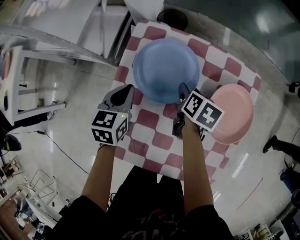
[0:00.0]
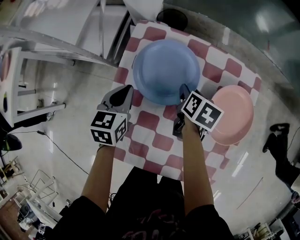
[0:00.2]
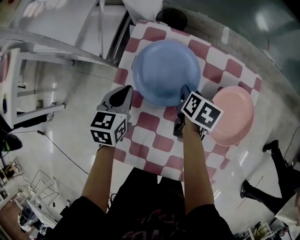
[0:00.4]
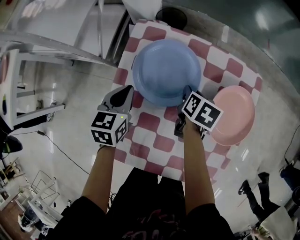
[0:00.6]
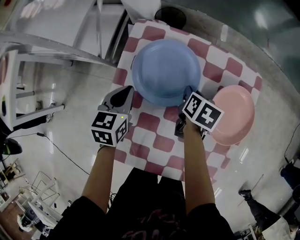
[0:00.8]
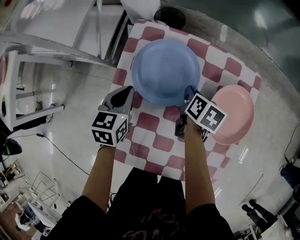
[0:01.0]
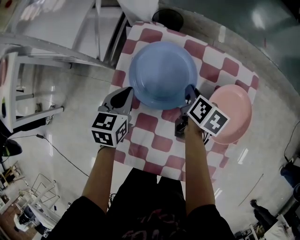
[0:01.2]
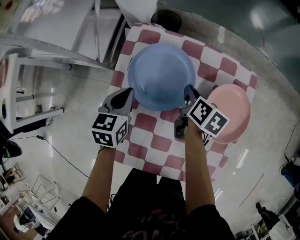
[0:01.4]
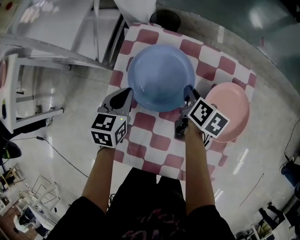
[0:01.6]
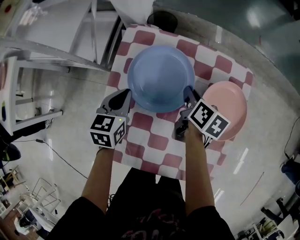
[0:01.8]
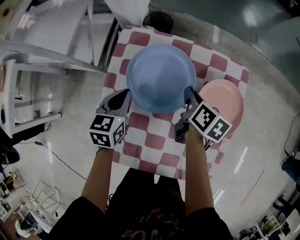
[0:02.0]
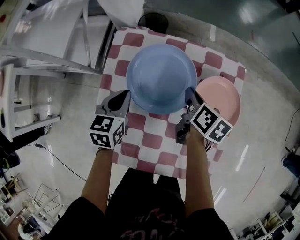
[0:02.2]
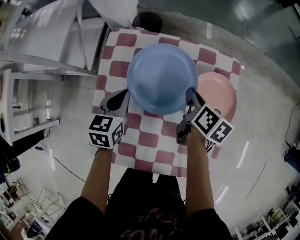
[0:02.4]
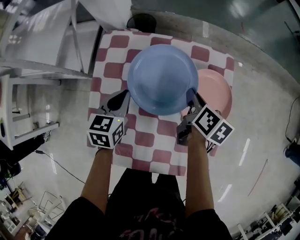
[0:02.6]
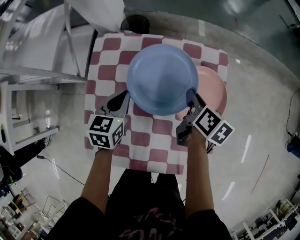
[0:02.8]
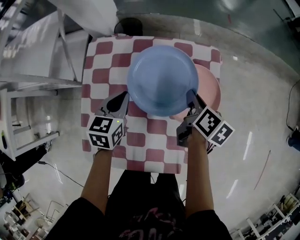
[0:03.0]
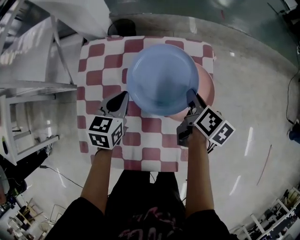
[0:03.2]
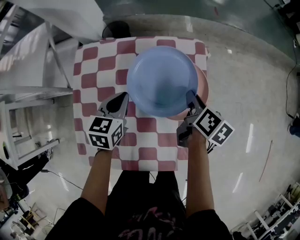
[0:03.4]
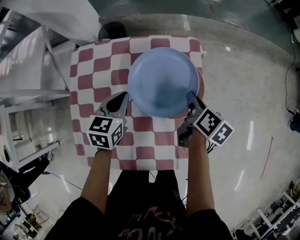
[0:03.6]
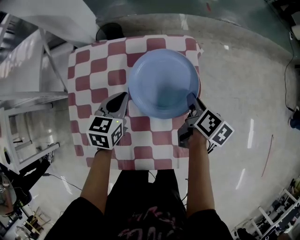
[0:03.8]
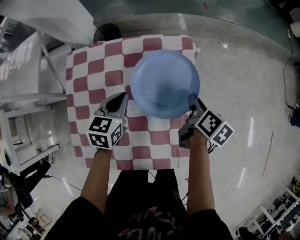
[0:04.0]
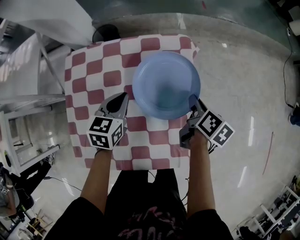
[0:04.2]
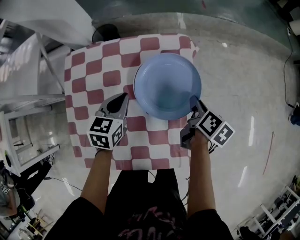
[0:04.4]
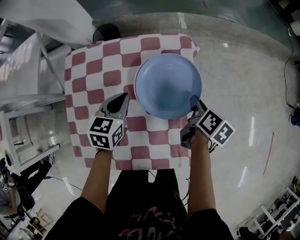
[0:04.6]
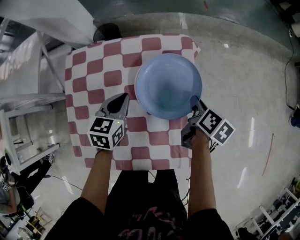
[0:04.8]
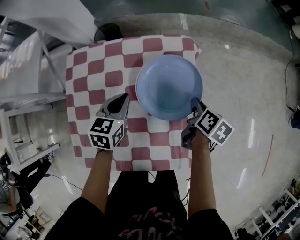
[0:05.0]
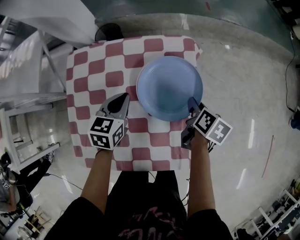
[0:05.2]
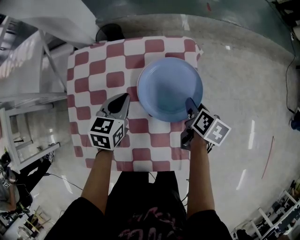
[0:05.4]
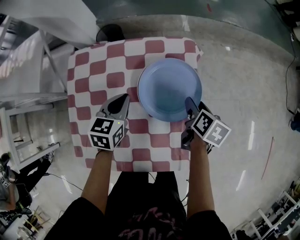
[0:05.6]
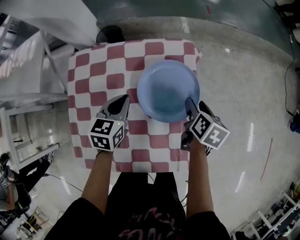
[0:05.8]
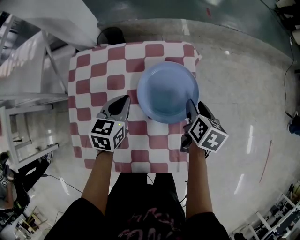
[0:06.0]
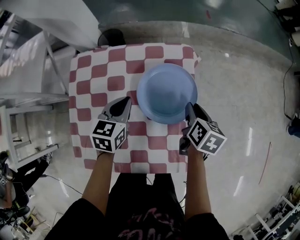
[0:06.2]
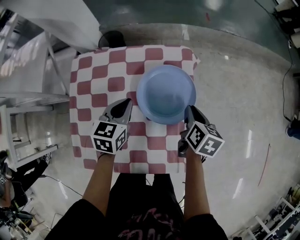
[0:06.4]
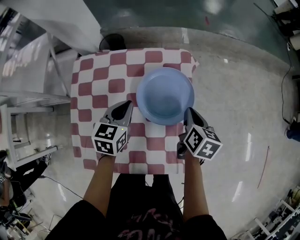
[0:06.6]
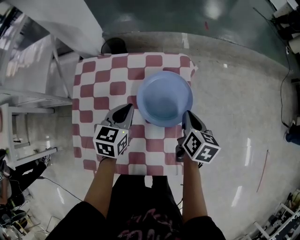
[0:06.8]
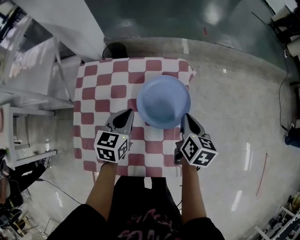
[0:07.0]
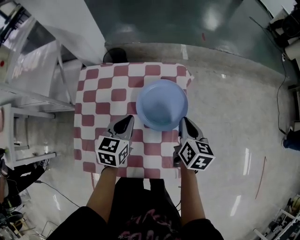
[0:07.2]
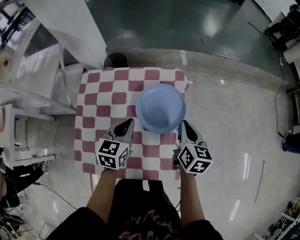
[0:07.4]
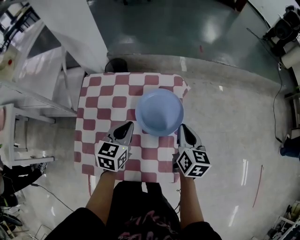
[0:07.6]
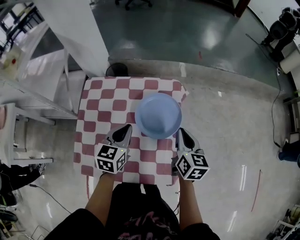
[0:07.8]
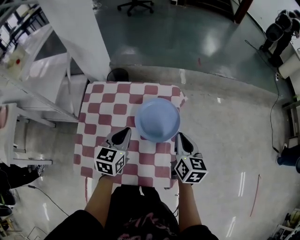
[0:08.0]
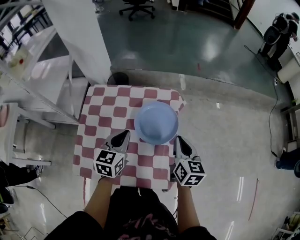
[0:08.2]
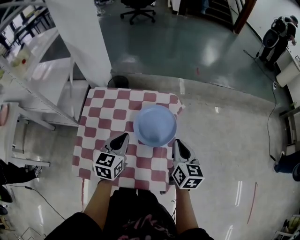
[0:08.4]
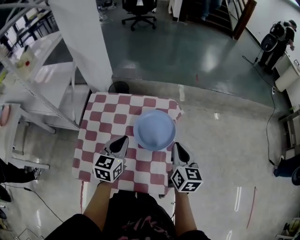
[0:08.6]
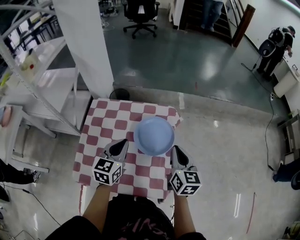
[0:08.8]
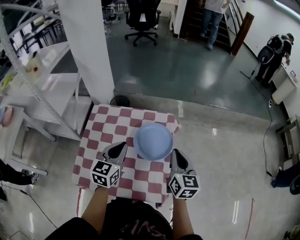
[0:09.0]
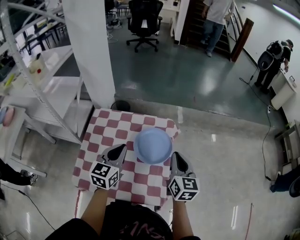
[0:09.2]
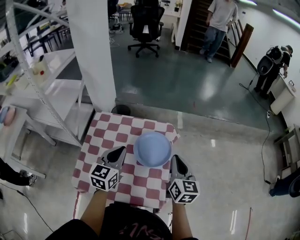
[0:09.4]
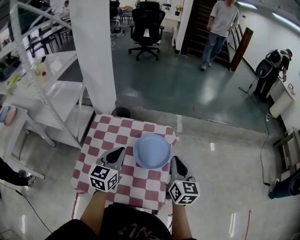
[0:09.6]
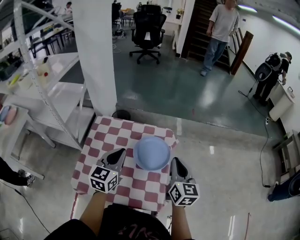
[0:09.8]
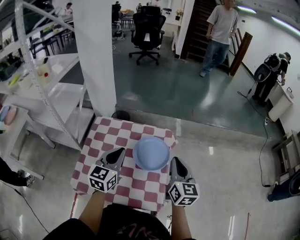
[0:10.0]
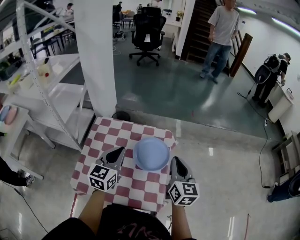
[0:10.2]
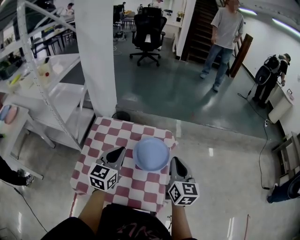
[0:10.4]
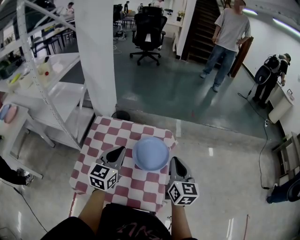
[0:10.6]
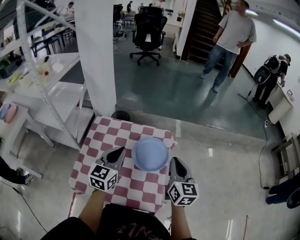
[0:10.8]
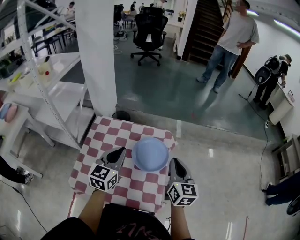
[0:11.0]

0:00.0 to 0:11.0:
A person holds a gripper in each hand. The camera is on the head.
0:00.0 to 0:01.6: The right gripper closes up.
0:01.6 to 0:03.2: Both grippers move to the right, approximately 20 cm.
0:03.2 to 0:04.8: The grippers both shift to the right by approximately 10 cm.
0:04.8 to 0:06.2: The right gripper opens and closes again.
0:06.2 to 0:07.8: The two grippers go roughly 10 cm upward and backward. The right gripper rotates about 30 degrees, and closes its fingers.
0:07.8 to 0:09.4: Both grippers move upward, approximately 10 cm.
0:09.4 to 0:11.0: The grippers stay close to where they were, moving slightly.

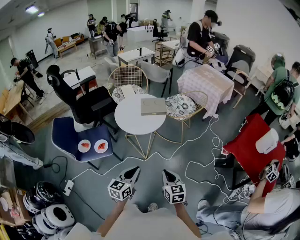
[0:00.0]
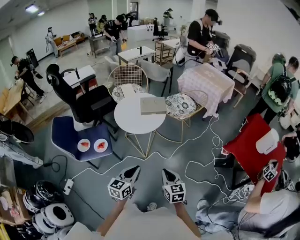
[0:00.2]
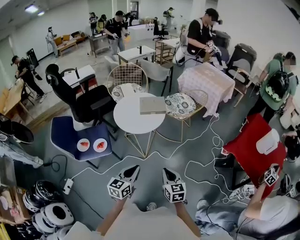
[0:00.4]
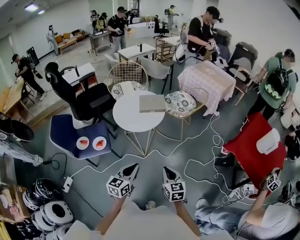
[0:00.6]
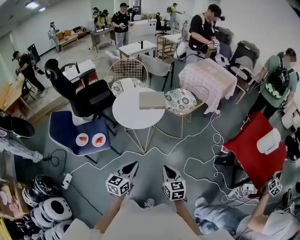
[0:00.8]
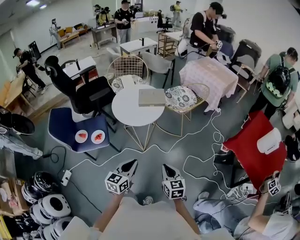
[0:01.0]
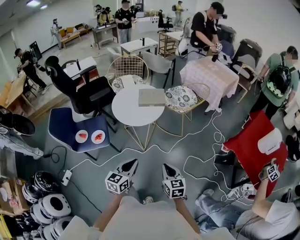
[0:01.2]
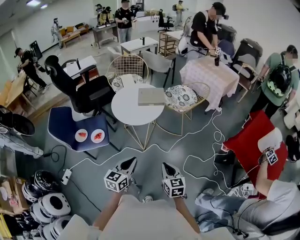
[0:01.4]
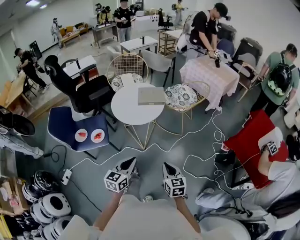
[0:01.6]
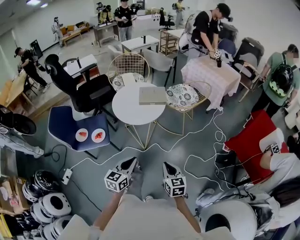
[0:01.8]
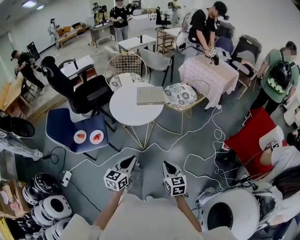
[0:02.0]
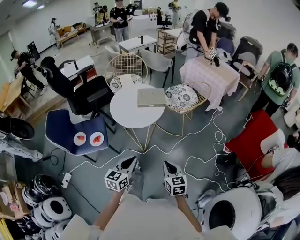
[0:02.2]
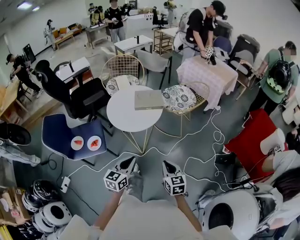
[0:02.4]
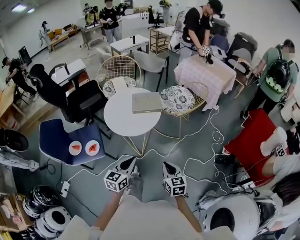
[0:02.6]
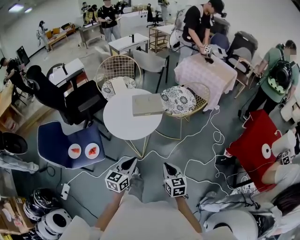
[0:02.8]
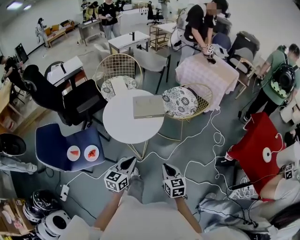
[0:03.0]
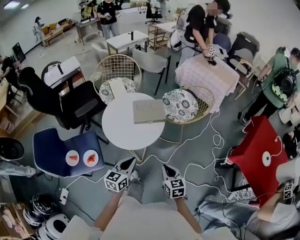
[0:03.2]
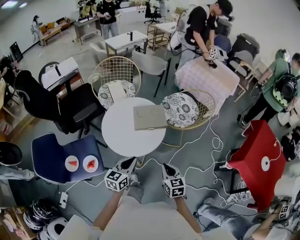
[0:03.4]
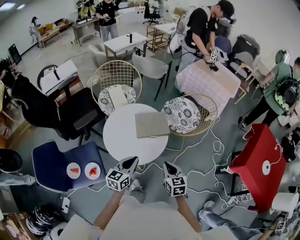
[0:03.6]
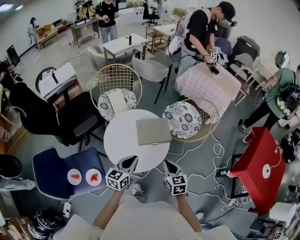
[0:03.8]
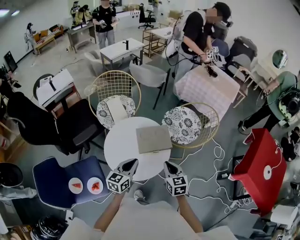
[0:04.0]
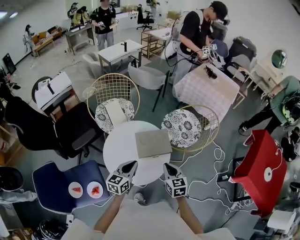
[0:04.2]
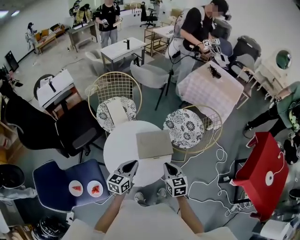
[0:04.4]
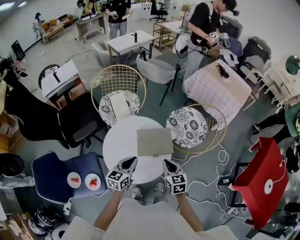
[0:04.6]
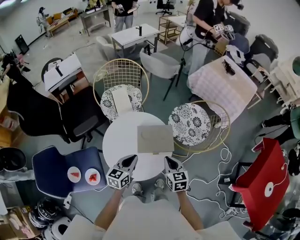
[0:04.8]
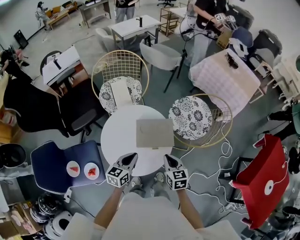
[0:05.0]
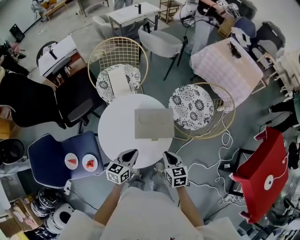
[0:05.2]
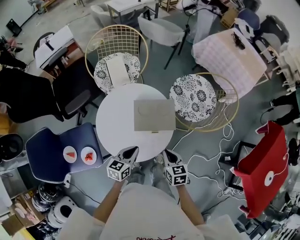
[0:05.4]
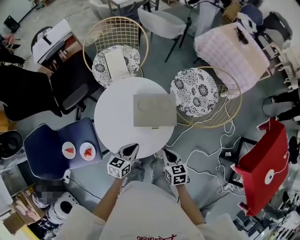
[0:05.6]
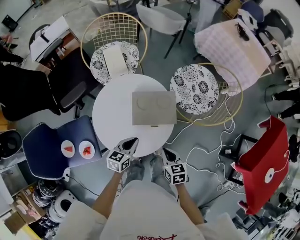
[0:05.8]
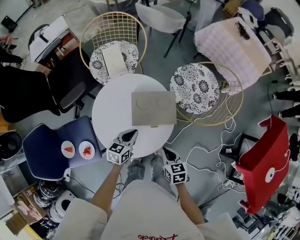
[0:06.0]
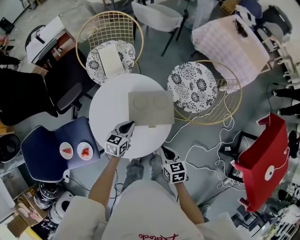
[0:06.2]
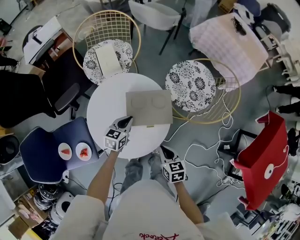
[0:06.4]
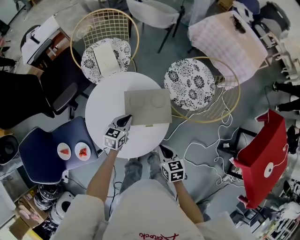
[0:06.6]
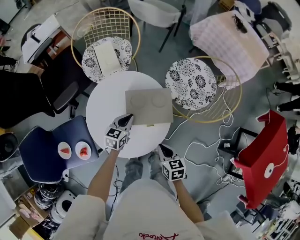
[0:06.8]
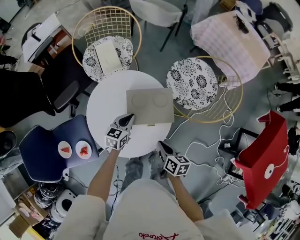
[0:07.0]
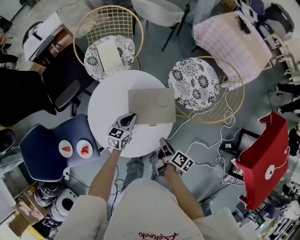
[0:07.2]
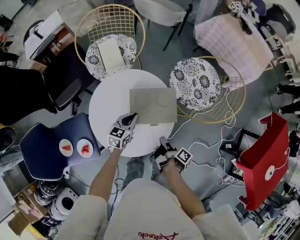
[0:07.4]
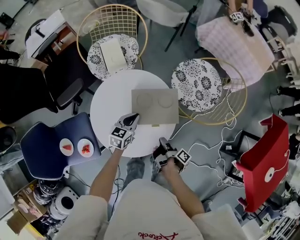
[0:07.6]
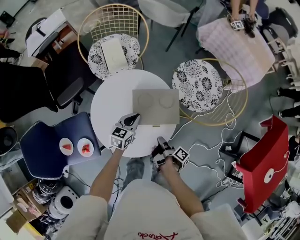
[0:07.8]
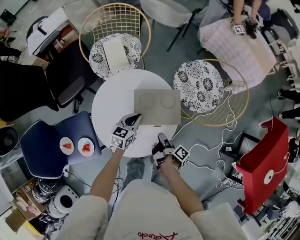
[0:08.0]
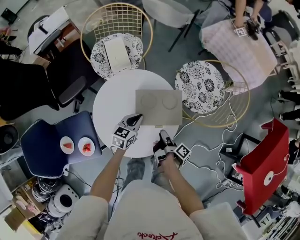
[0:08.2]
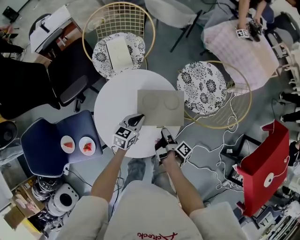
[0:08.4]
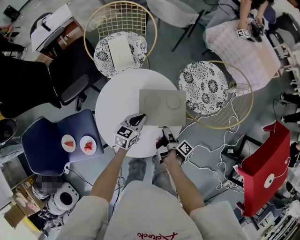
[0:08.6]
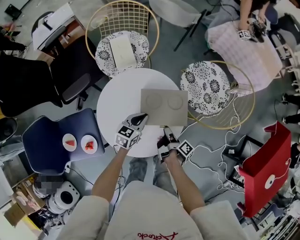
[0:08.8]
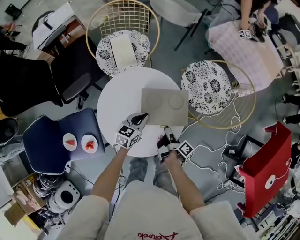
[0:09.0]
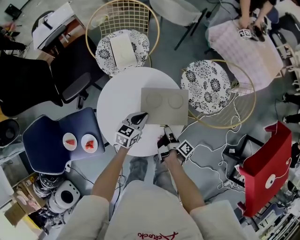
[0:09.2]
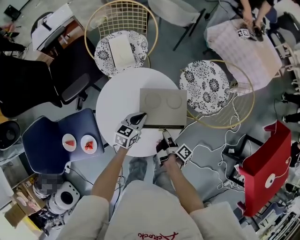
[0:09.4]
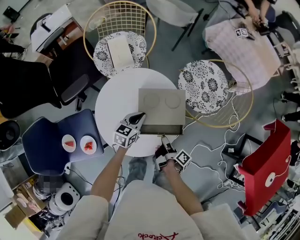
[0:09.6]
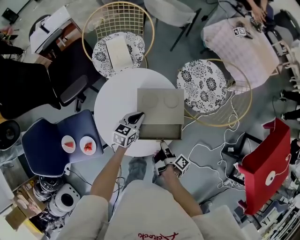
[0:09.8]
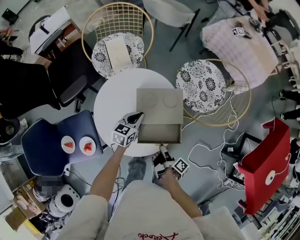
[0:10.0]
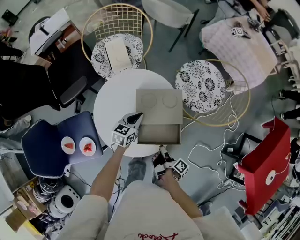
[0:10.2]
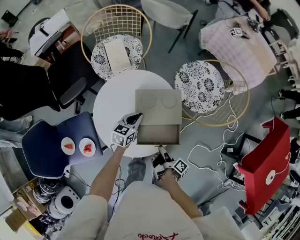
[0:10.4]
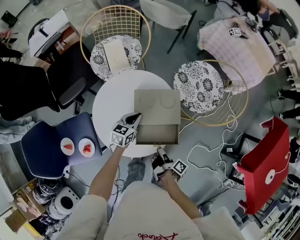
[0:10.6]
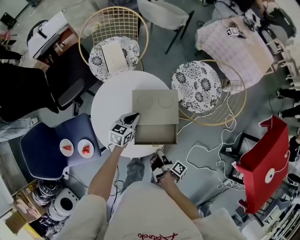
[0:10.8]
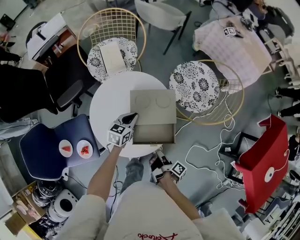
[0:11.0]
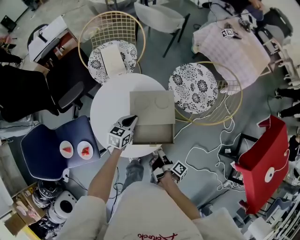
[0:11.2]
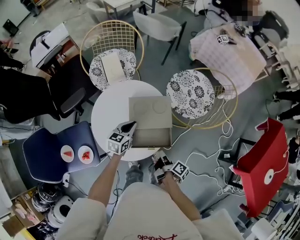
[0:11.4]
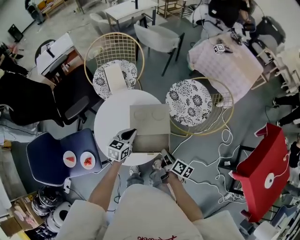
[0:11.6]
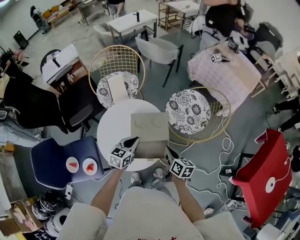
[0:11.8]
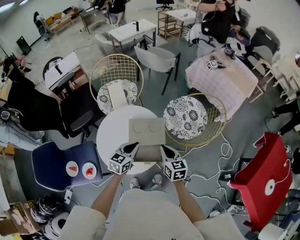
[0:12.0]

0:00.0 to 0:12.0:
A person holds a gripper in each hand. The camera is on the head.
0:00.0 to 0:01.6: The right gripper travels to the right by approximately 5 cm.
0:01.6 to 0:03.0: The two grippers go roughly 20 cm forward.
0:03.0 to 0:04.4: The two grippers go roughly 30 cm forward.
0:04.4 to 0:06.0: The grippers both shift downward by approximately 15 cm. The right gripper swivels some 20 degrees.
0:06.0 to 0:07.6: The left gripper heads forward, covering about 10 cm, while the right gripper goes approximately 5 cm downward, and twists some 100 degrees clockwise, seen from behind.
0:07.6 to 0:09.0: The right gripper travels forward by about 5 cm.
0:09.0 to 0:10.4: The right gripper goes about 10 cm backward.
0:10.4 to 0:12.0: The left gripper heads upward, backward and to the right, covering roughly 15 cm; the right gripper heads upward and forward, covering roughly 20 cm, and rotates around the line of its fingers by some 90 degrees, counterclockwise from behind.

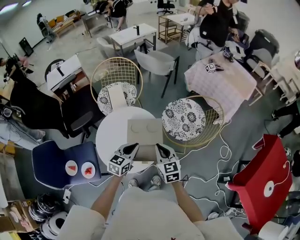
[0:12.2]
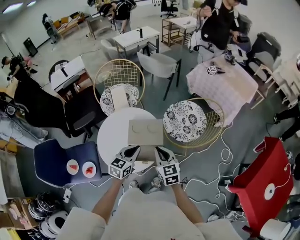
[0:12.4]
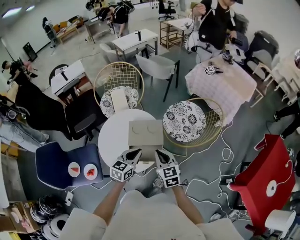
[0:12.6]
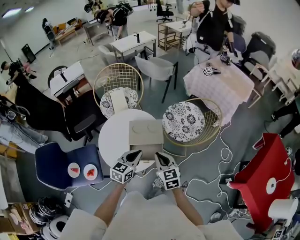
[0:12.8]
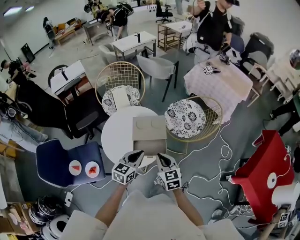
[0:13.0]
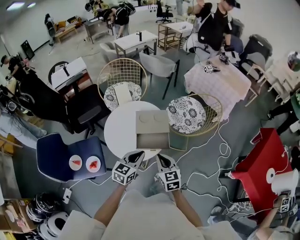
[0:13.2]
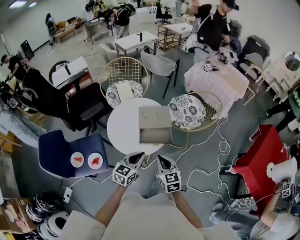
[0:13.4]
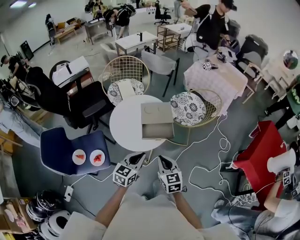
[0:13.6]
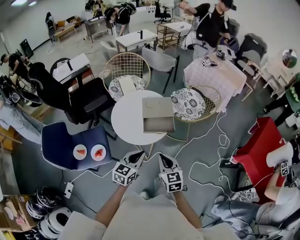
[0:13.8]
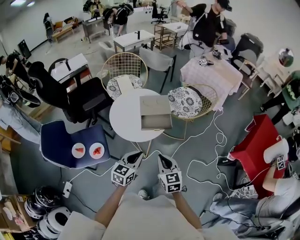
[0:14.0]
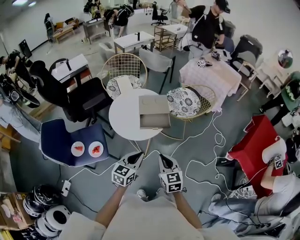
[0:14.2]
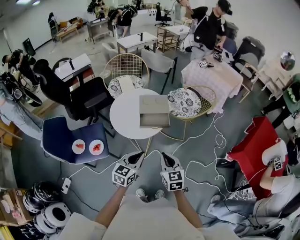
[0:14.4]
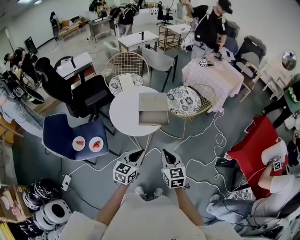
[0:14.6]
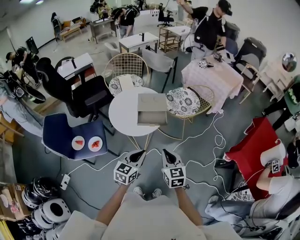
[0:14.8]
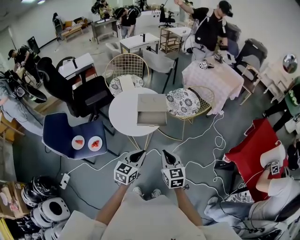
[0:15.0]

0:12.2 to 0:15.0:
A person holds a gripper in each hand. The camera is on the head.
0:12.2 to 0:13.6: The two grippers go about 25 cm backward.
0:13.6 to 0:15.0: The left gripper moves backward and to the right, about 15 cm. The right gripper shifts approximately 10 cm to the right and backward.
